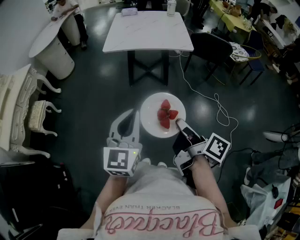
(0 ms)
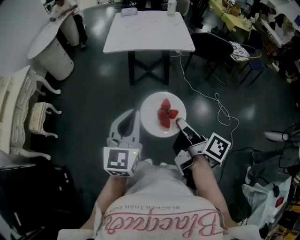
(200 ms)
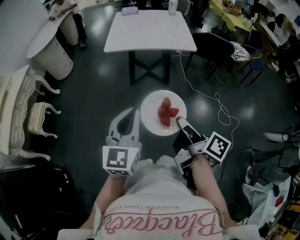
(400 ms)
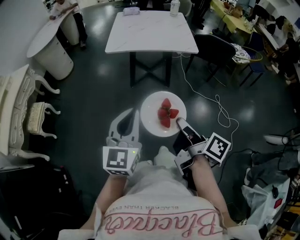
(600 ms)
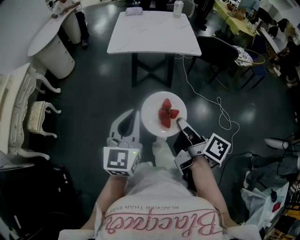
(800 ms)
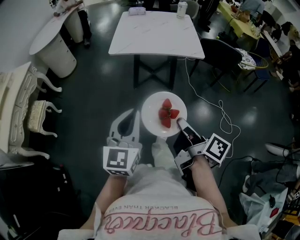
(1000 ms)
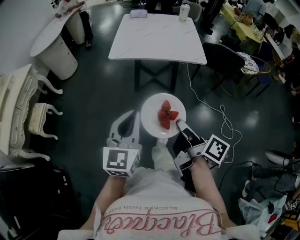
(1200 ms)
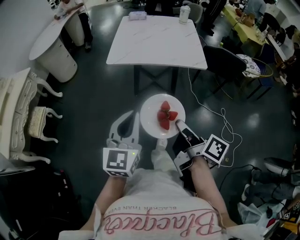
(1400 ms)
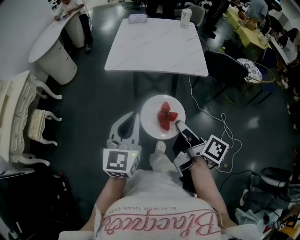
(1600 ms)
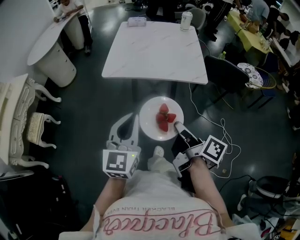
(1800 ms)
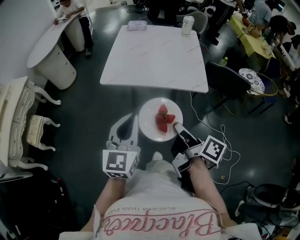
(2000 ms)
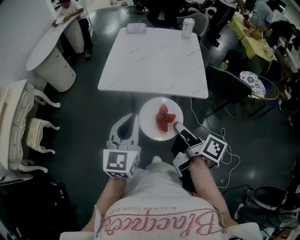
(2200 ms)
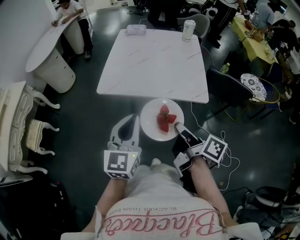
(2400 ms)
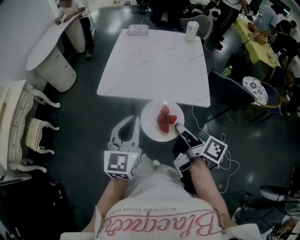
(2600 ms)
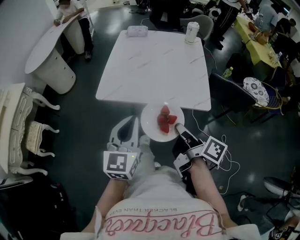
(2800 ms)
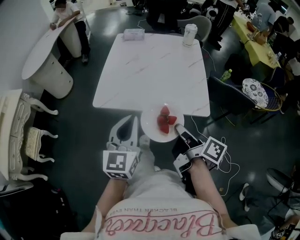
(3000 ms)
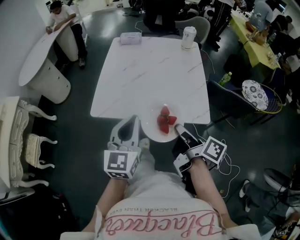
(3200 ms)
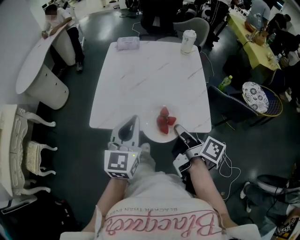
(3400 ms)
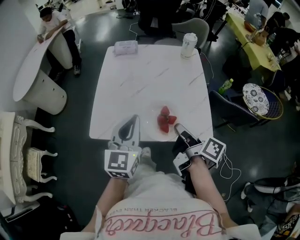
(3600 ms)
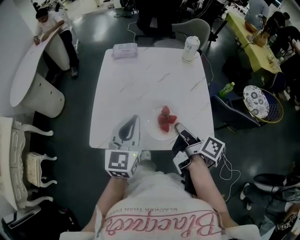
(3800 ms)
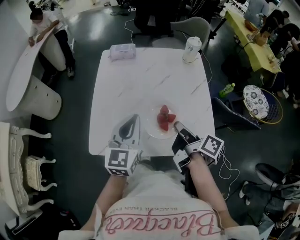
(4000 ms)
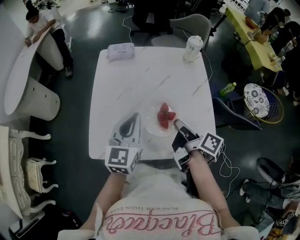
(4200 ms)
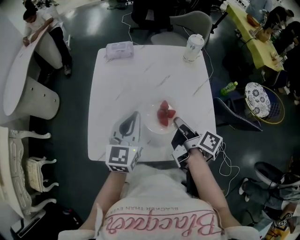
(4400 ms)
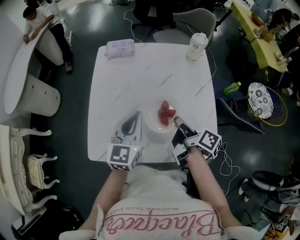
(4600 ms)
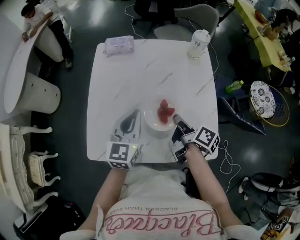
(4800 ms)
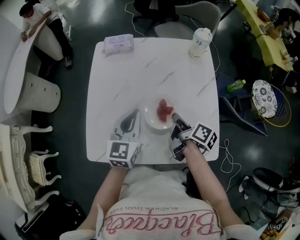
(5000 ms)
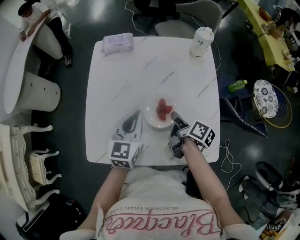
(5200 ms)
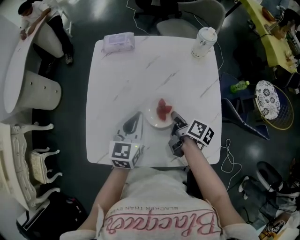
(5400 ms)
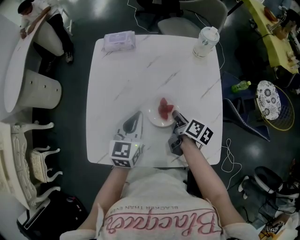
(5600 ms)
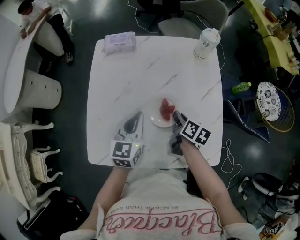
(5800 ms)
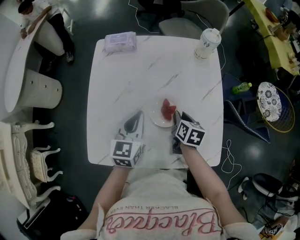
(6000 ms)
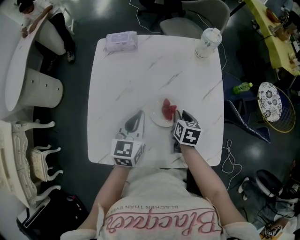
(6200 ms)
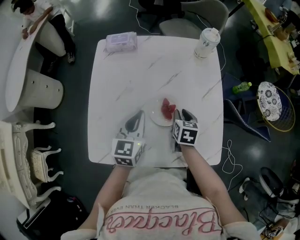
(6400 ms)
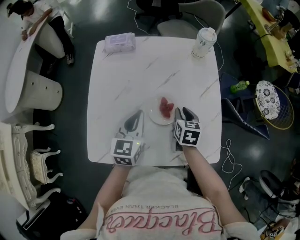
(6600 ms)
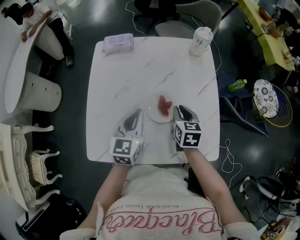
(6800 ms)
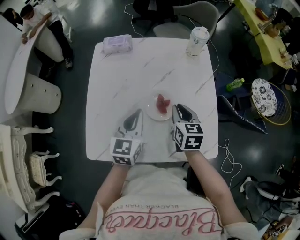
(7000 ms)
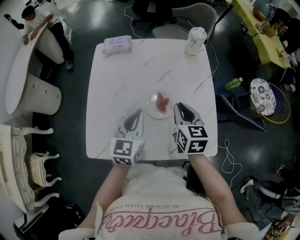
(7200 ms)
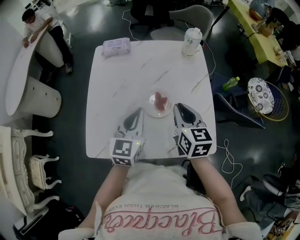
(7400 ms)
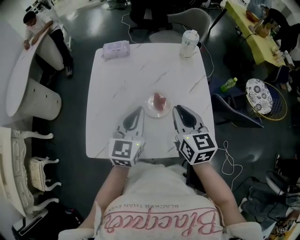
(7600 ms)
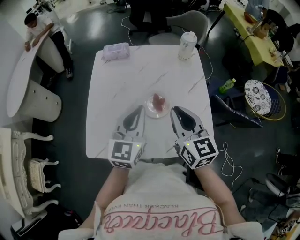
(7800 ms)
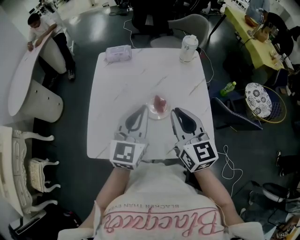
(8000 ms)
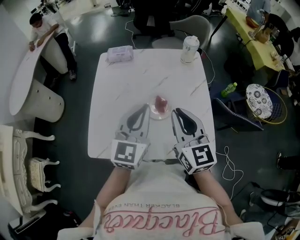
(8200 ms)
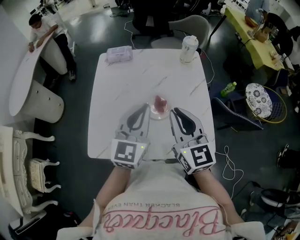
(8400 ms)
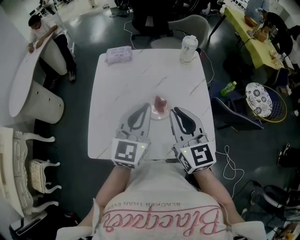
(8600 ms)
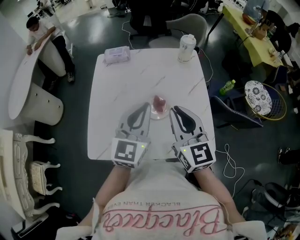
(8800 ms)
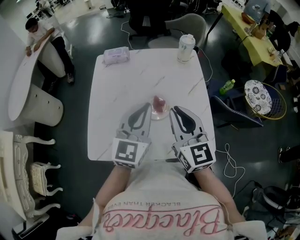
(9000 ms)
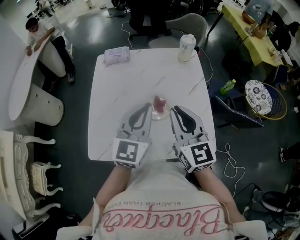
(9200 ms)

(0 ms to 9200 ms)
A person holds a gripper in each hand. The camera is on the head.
0 ms - 1600 ms: The grippers both shift forward by roughly 25 cm.
1600 ms - 3000 ms: Both grippers move forward, some 25 cm.
3000 ms - 4600 ms: The grippers both shift forward by approximately 35 cm.
4600 ms - 6200 ms: The right gripper shifts some 15 cm downward and forward, and rolls counterclockwise, seen from behind, by about 50 degrees. The left gripper shifts roughly 10 cm downward and forward.
6200 ms - 7600 ms: The left gripper travels upward and backward by about 10 cm, while the right gripper travels upward by approximately 20 cm, and angles its fingers upward, by roughly 30 degrees.
7600 ms - 9200 ms: The two grippers go some 5 cm upward.

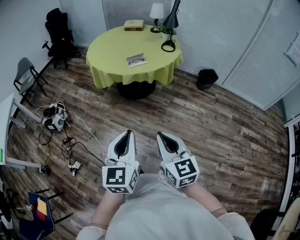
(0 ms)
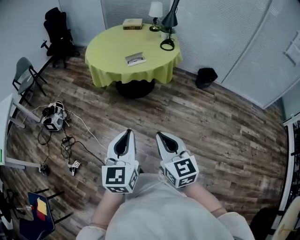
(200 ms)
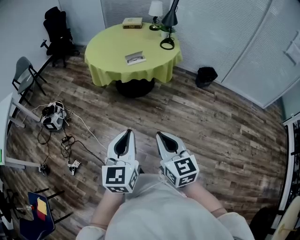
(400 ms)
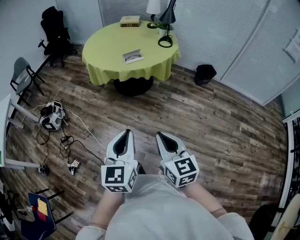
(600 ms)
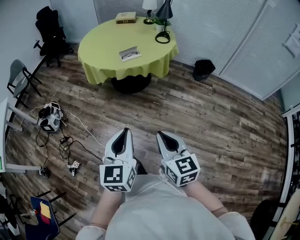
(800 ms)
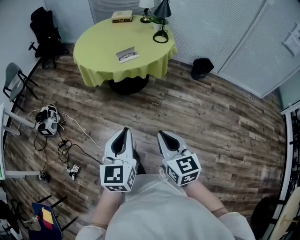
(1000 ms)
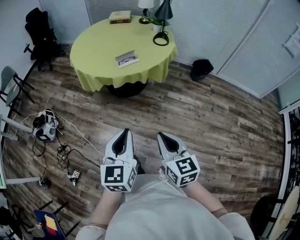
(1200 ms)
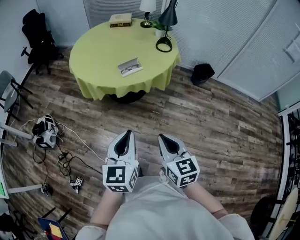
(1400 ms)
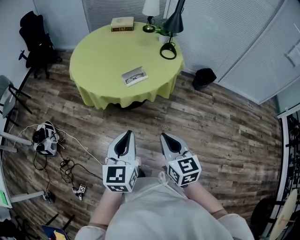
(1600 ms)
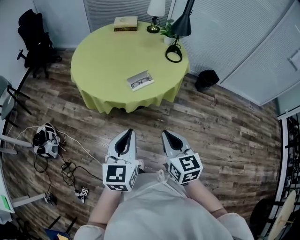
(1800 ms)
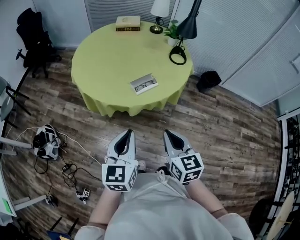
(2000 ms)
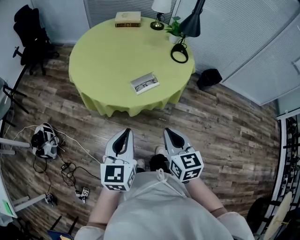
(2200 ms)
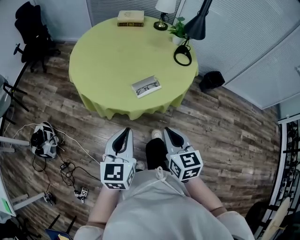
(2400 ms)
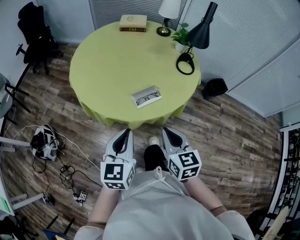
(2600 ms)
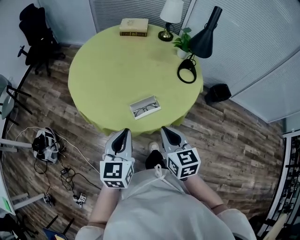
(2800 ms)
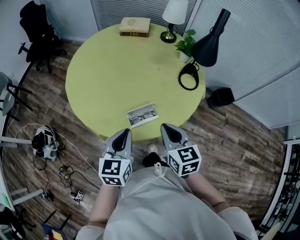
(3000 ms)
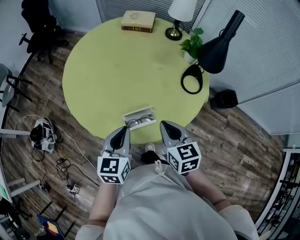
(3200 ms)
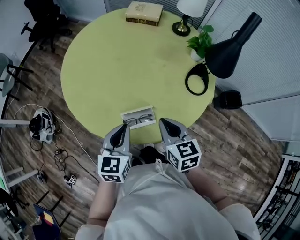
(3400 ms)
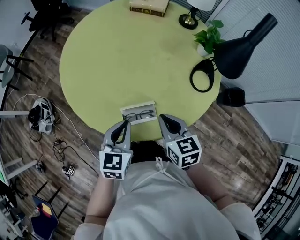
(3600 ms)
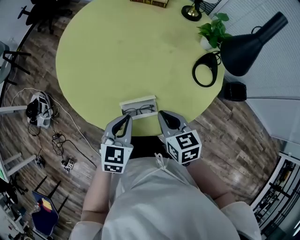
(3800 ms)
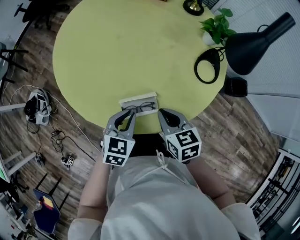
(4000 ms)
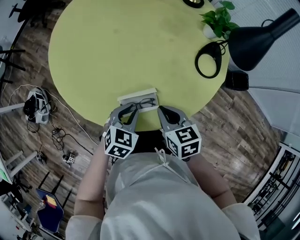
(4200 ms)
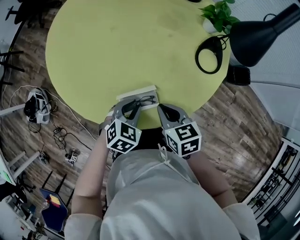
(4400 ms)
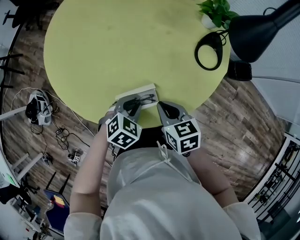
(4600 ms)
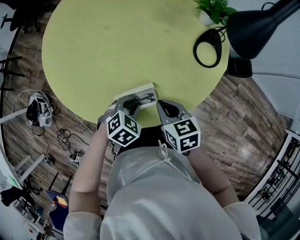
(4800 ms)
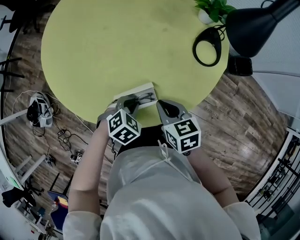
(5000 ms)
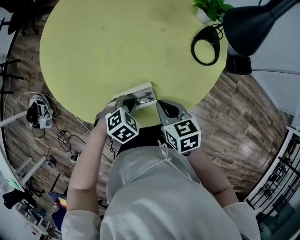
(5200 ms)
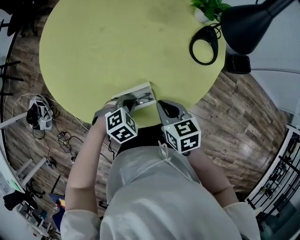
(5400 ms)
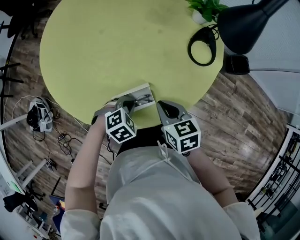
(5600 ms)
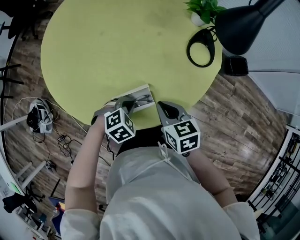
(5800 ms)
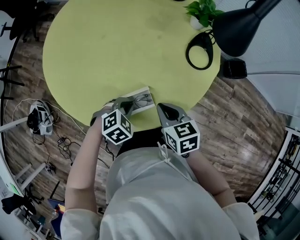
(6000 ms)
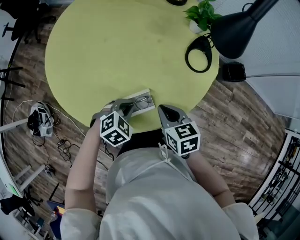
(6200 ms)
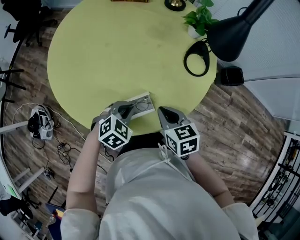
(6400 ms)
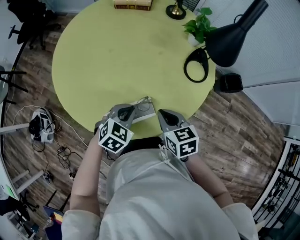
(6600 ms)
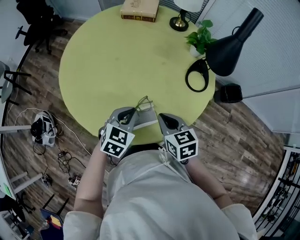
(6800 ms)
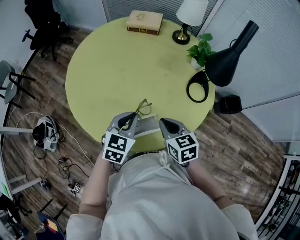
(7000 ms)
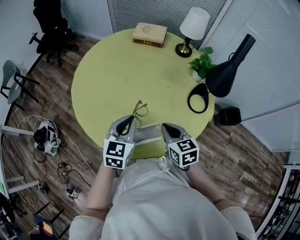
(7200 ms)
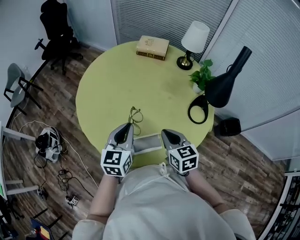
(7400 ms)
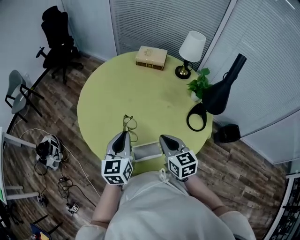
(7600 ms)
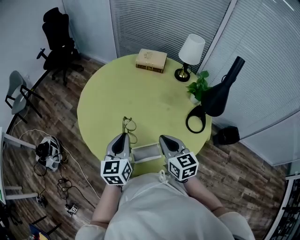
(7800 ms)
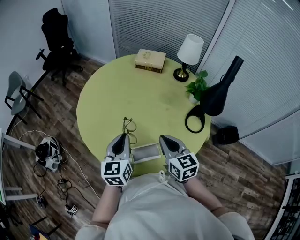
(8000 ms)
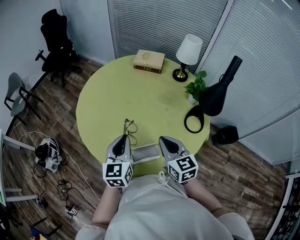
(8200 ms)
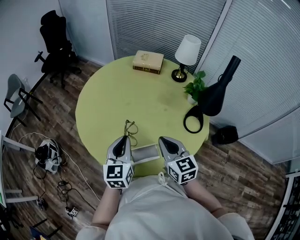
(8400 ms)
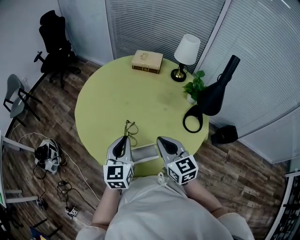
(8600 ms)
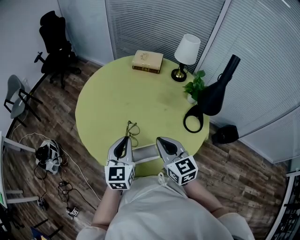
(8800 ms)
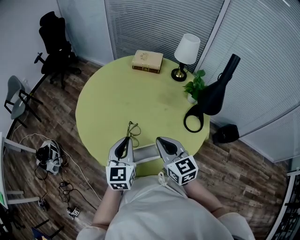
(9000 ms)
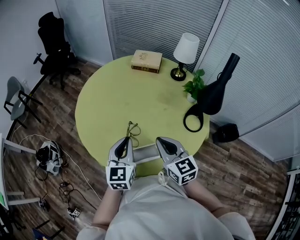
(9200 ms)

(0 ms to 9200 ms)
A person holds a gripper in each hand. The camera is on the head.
0 ms - 1600 ms: The two grippers go approximately 30 cm forward.
1600 ms - 3000 ms: Both grippers travel together forward, roughly 40 cm.
3000 ms - 4600 ms: The two grippers go about 20 cm downward and forward. The left gripper angles its fingers downward, by approximately 40 degrees, while the right gripper changes its angle by about 30 degrees.
6200 ms - 7600 ms: The right gripper shifts approximately 15 cm upward, and swivels some 20 degrees, while the left gripper shifts approximately 25 cm upward and to the left, and tips its fingers upward by about 50 degrees.
7600 ms - 9200 ms: There are only small adjustments of the grippers.

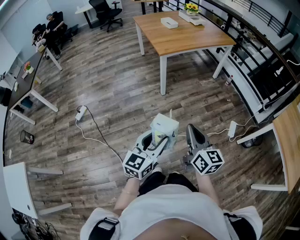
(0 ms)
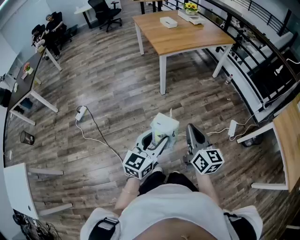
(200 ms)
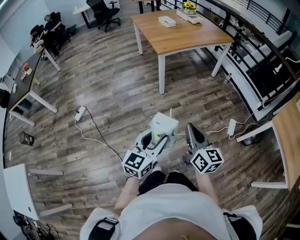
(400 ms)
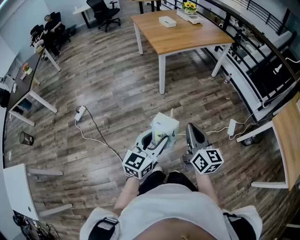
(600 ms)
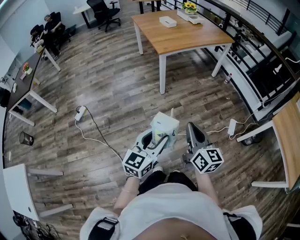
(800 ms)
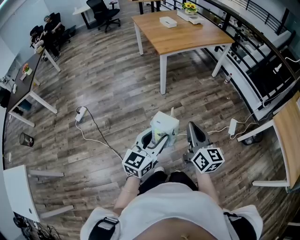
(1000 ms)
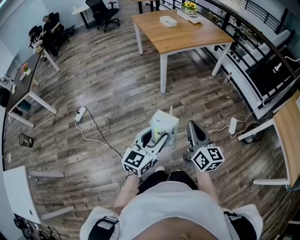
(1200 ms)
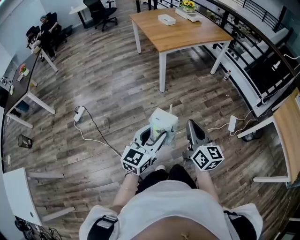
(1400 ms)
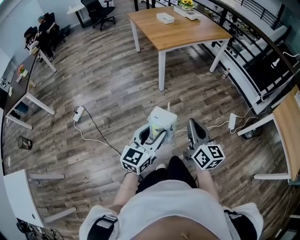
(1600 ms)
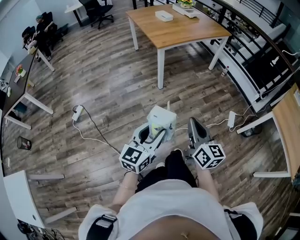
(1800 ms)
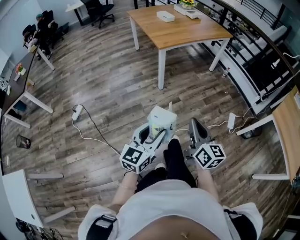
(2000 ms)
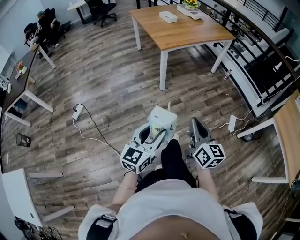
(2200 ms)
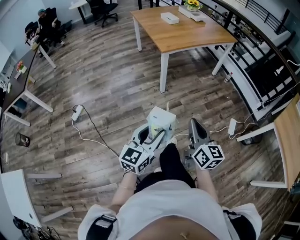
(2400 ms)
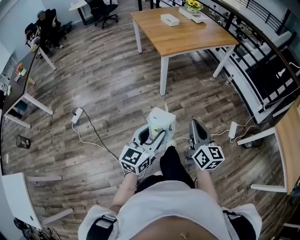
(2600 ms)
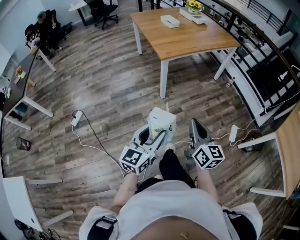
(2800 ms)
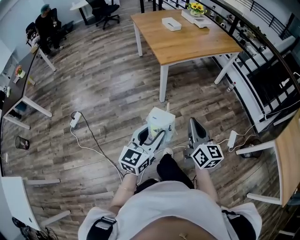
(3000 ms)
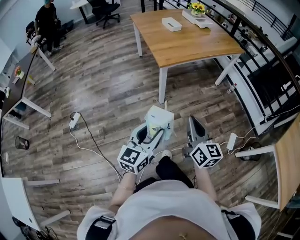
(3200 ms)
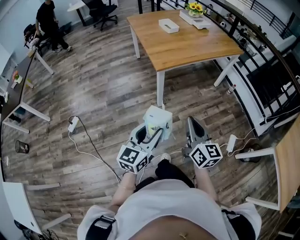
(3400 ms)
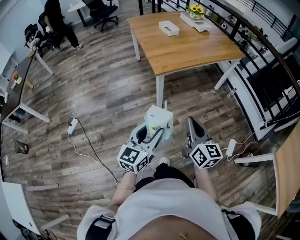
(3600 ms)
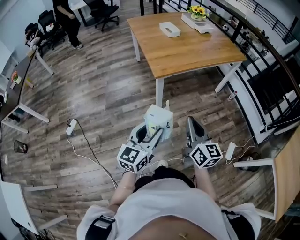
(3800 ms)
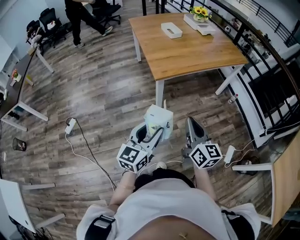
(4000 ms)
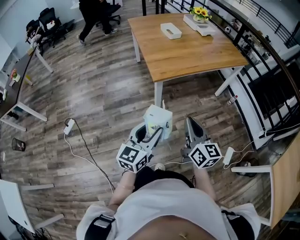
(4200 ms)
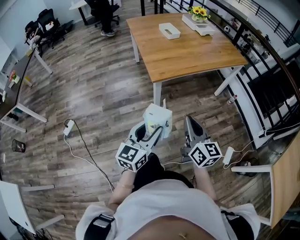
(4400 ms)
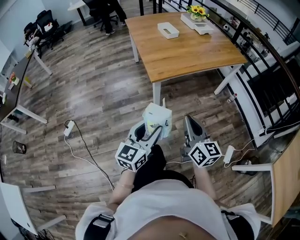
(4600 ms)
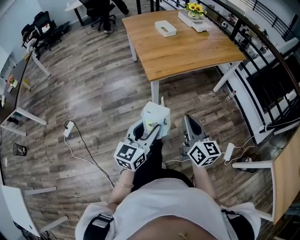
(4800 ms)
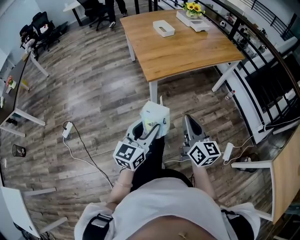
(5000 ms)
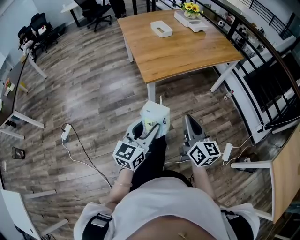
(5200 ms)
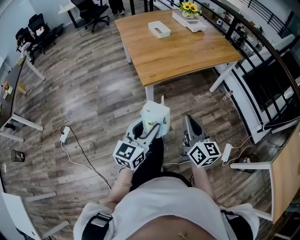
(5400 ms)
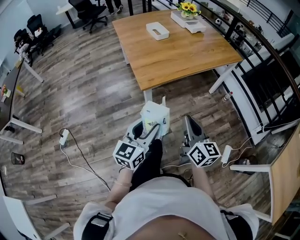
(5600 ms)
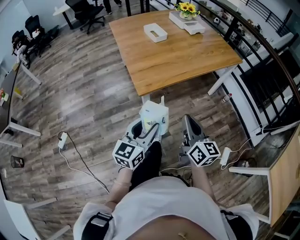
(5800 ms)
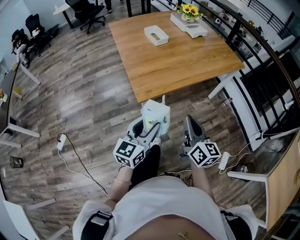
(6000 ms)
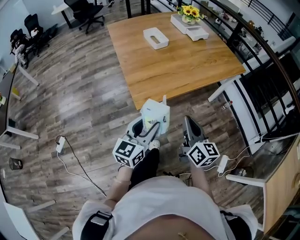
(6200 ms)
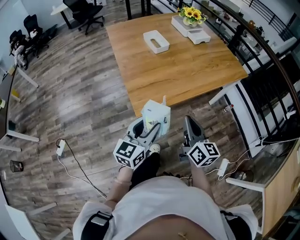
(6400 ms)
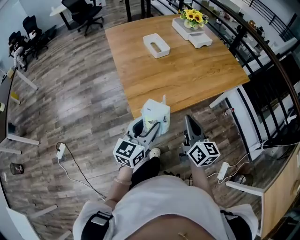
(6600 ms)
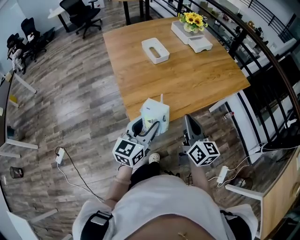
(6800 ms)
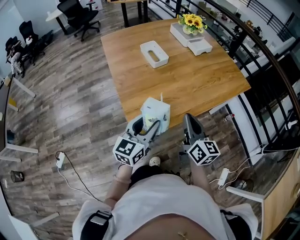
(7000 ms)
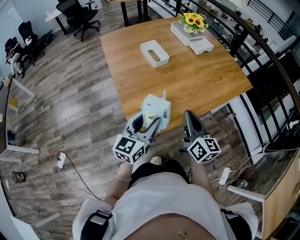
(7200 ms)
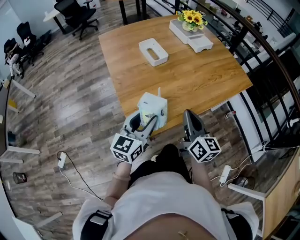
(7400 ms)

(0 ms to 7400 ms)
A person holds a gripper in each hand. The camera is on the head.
0 ms - 1400 ms: The grippers move only a little.
1400 ms - 3000 ms: The grippers both shift forward by about 20 cm.
3000 ms - 4400 ms: The grippers both shift forward by about 20 cm.
4400 ms - 6000 ms: The grippers both shift forward by some 15 cm.
6000 ms - 7400 ms: The two grippers go some 25 cm forward.
